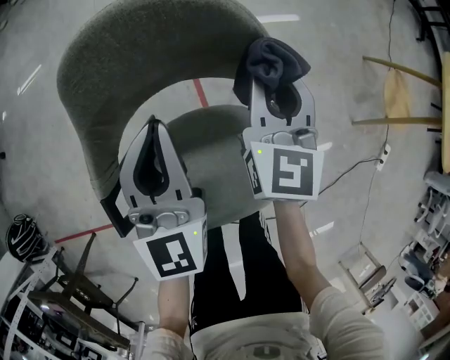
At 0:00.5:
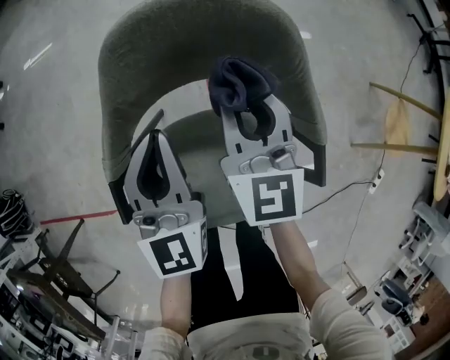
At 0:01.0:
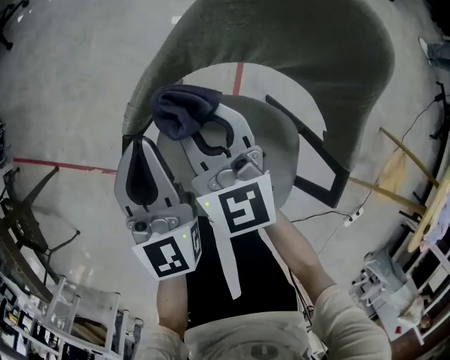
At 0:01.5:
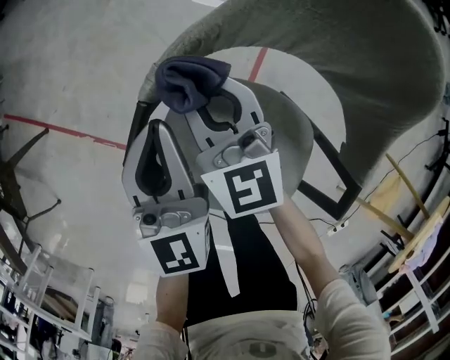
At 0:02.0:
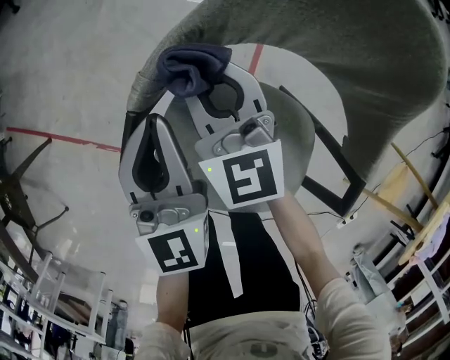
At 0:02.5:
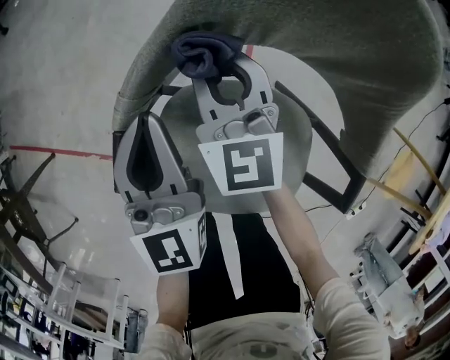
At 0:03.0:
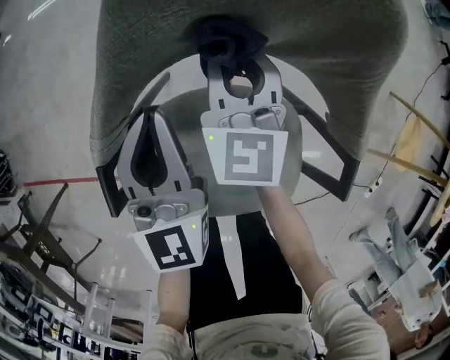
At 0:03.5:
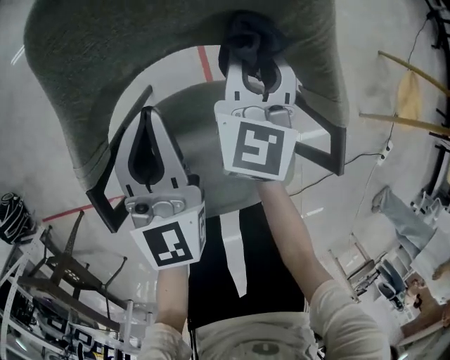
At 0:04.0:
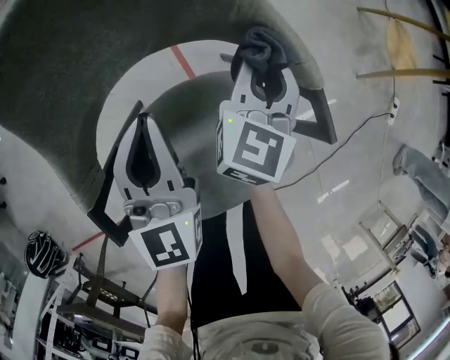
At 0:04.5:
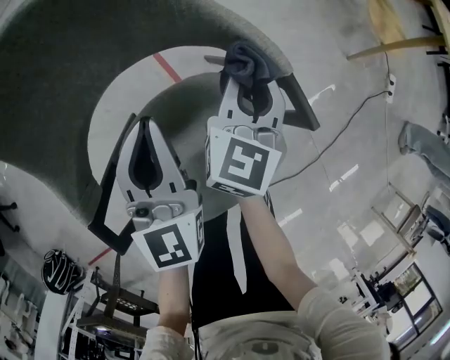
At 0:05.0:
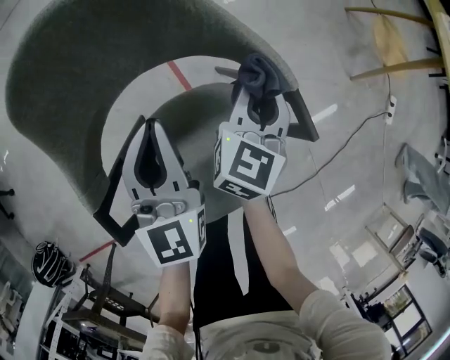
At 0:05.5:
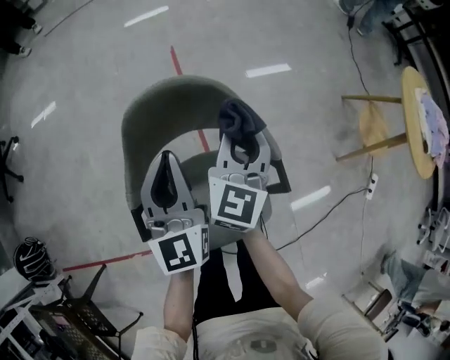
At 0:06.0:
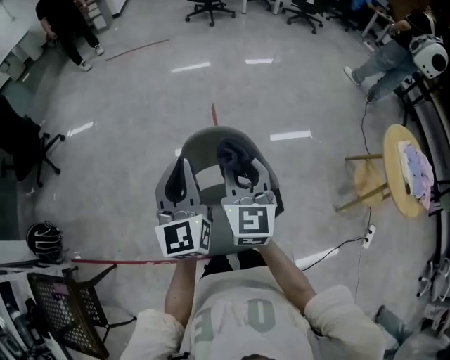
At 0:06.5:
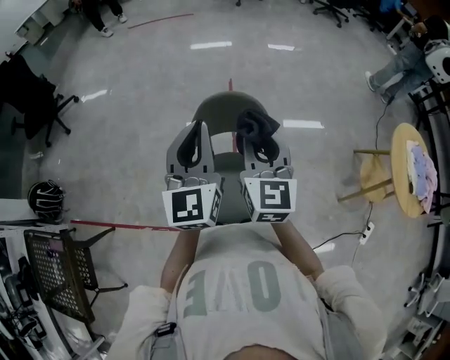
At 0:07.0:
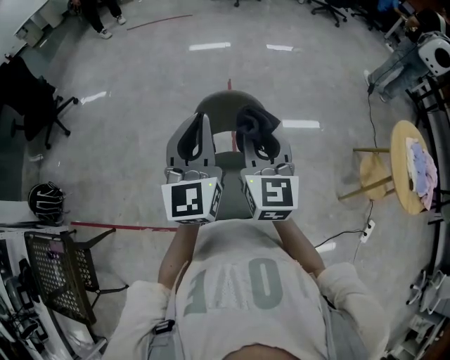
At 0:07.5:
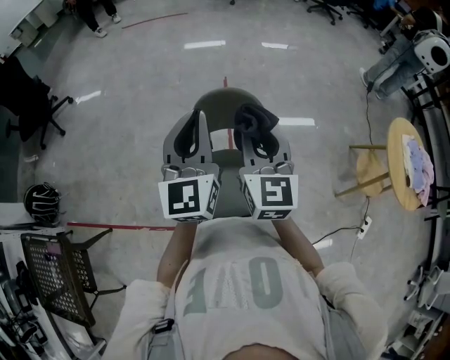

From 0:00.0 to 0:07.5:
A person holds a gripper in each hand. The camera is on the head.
From 0:00.0 to 0:02.0: The right gripper shifts by approximately 35 cm, and swivels roughly 60 degrees. The left gripper moves some 20 cm, and turns by roughly 30 degrees.
From 0:02.0 to 0:04.0: The left gripper moves approximately 20 cm, and rotates some 40 degrees, while the right gripper shifts by some 40 cm, and changes its angle by approximately 80 degrees.
From 0:04.0 to 0:05.5: The two grippers go approximately 20 cm upward.
From 0:05.5 to 0:07.5: The two grippers go approximately 30 cm upward and backward. The right gripper swivels about 30 degrees.

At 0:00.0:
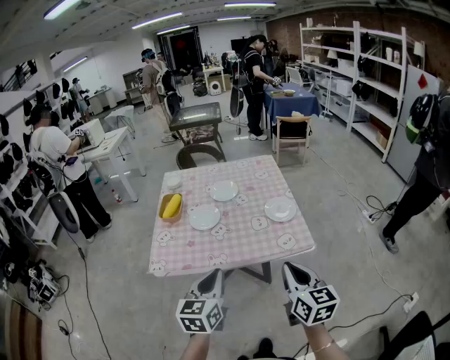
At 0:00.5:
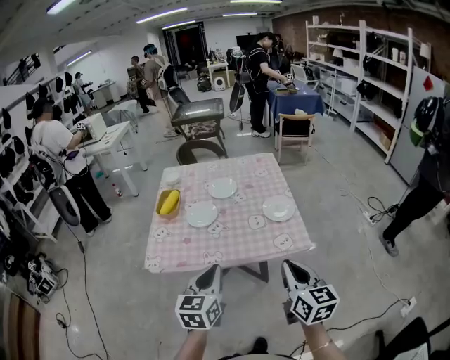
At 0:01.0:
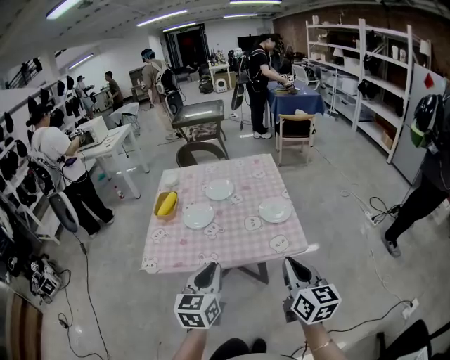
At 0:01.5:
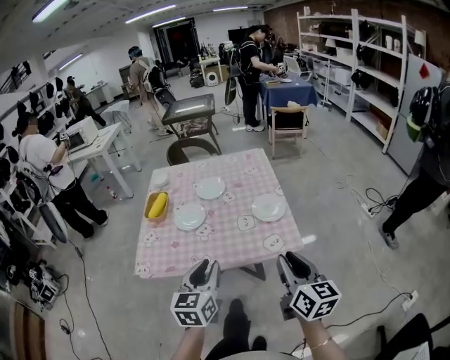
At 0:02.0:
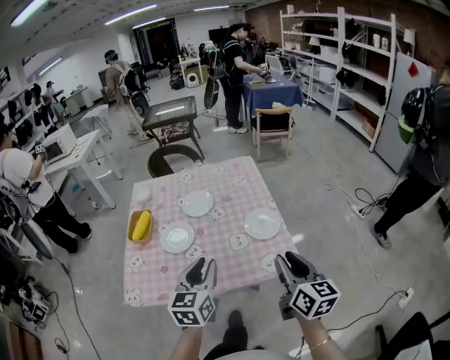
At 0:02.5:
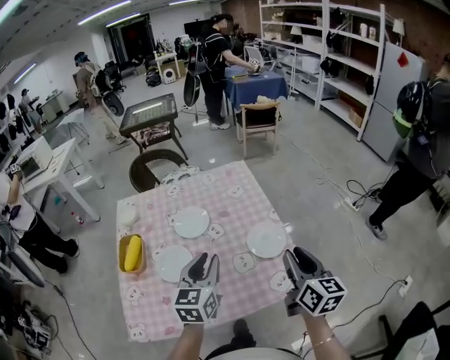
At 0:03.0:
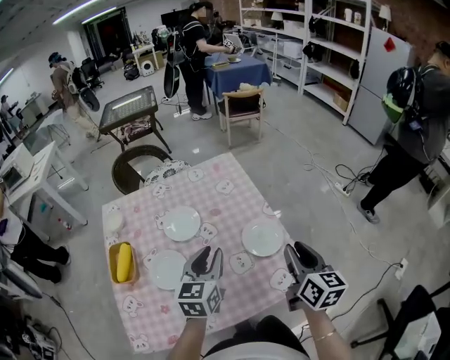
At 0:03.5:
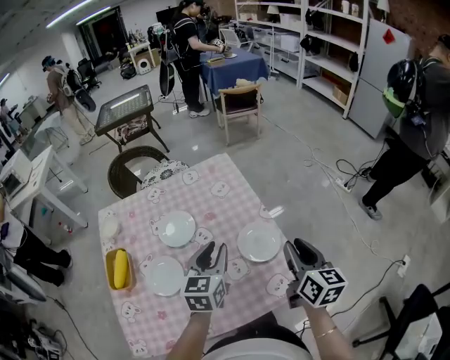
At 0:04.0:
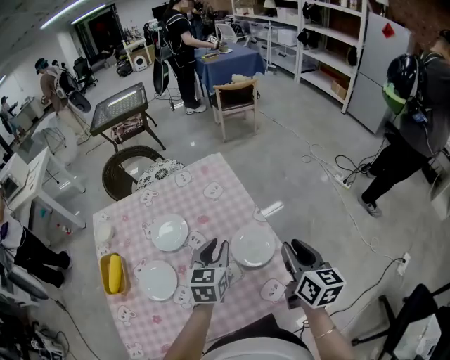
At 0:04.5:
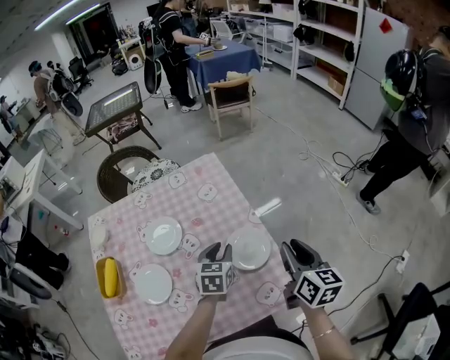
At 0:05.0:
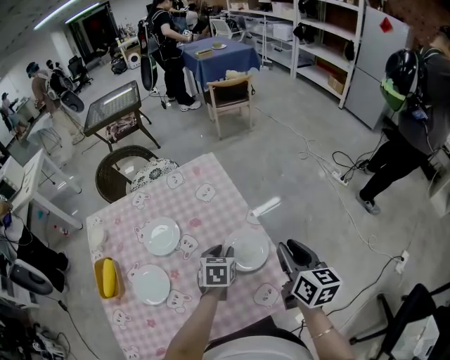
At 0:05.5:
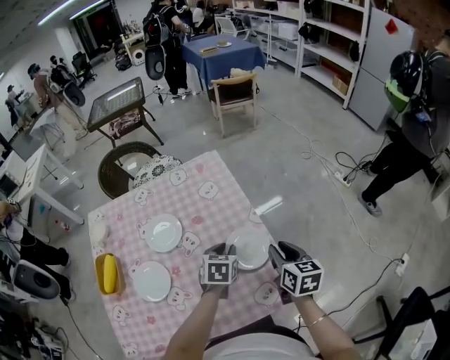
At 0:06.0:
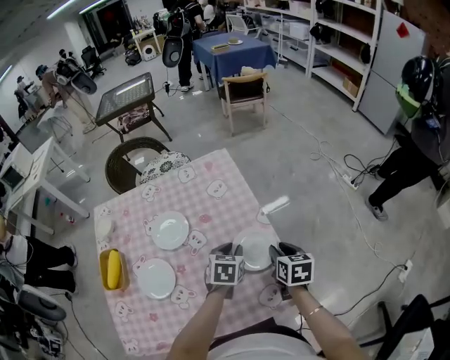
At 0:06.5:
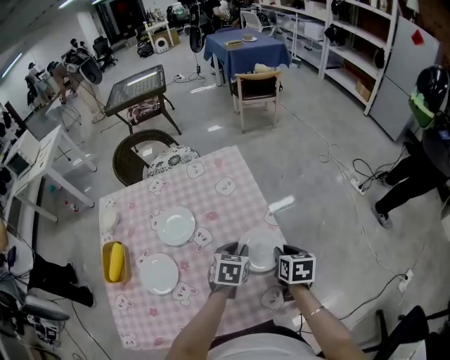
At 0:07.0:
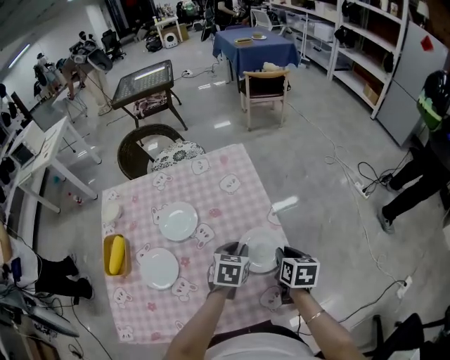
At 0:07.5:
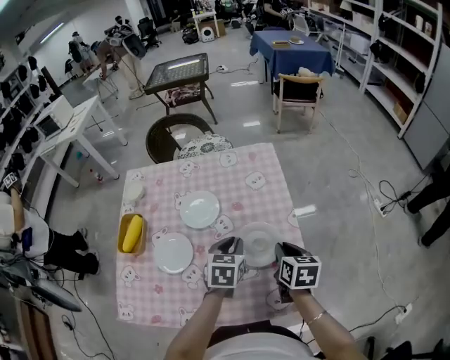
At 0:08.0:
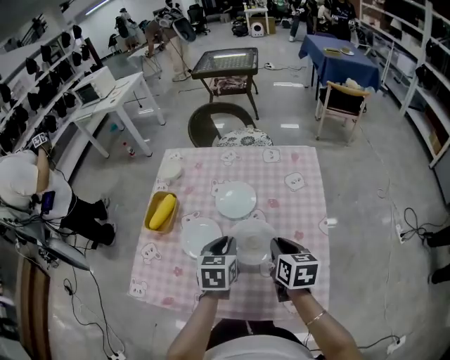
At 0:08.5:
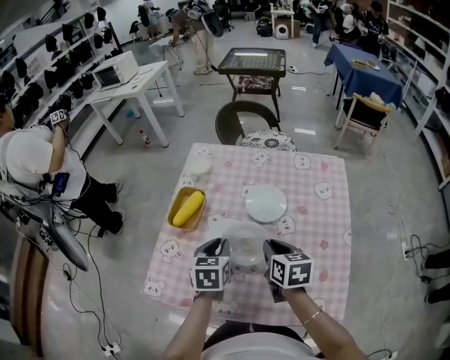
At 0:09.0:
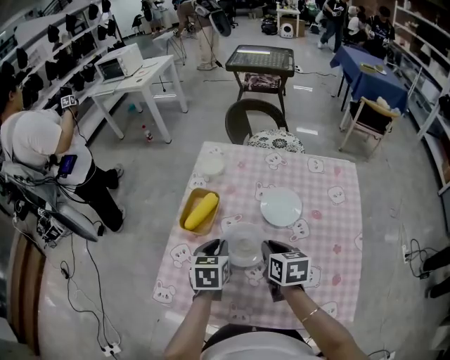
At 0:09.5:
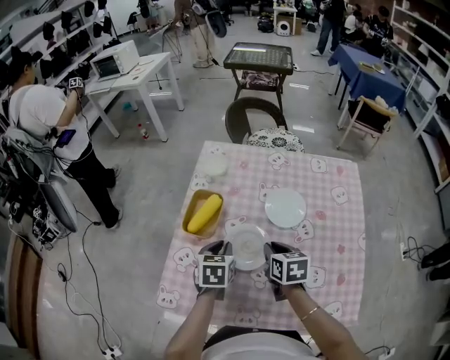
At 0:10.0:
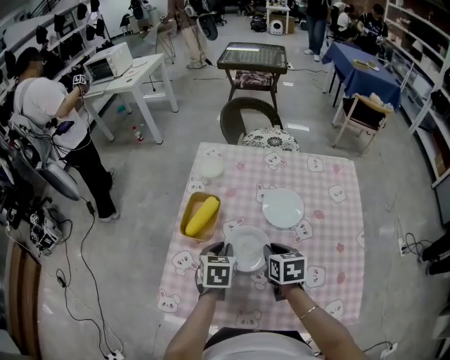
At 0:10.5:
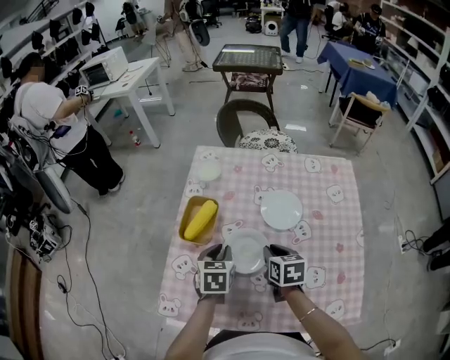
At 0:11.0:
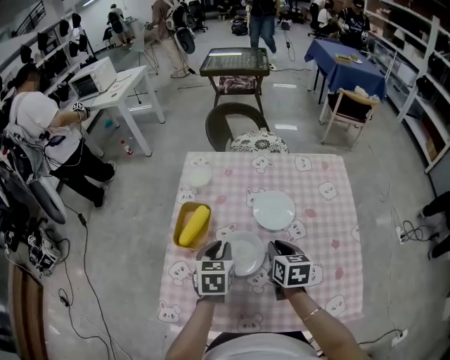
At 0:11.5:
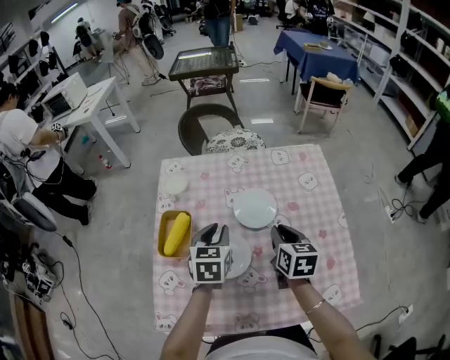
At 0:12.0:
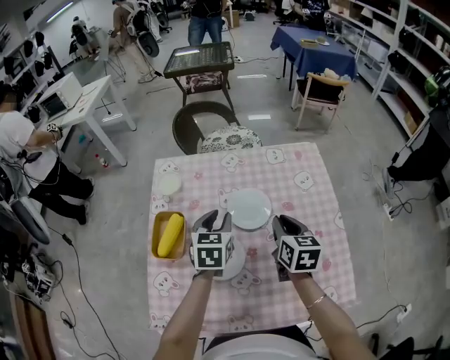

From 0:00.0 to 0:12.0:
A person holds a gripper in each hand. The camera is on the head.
From 0:00.0 to 0:02.0: The right gripper heads forward and to the right, covering some 20 cm, and opens. Meanwhile the left gripper is displaced forward by about 20 cm.
From 0:02.0 to 0:04.0: The grippers both shift forward by approximately 30 cm.
From 0:04.0 to 0:06.0: Both grippers travel together downward, approximately 15 cm. The right gripper swivels some 30 degrees; the left gripper swivels some 20 degrees.
From 0:06.0 to 0:08.0: The left gripper changes place by roughly 20 cm, and swivels some 30 degrees; the right gripper shifts by about 20 cm, and turns by approximately 30 degrees.
From 0:08.0 to 0:10.0: Both grippers travel together to the left and forward, roughly 25 cm.
From 0:10.0 to 0:12.0: The left gripper is displaced to the right, forward and upward by roughly 20 cm, and rotates approximately 20 degrees. Meanwhile the right gripper shifts about 15 cm to the right, upward and forward, and rotates roughly 30 degrees.

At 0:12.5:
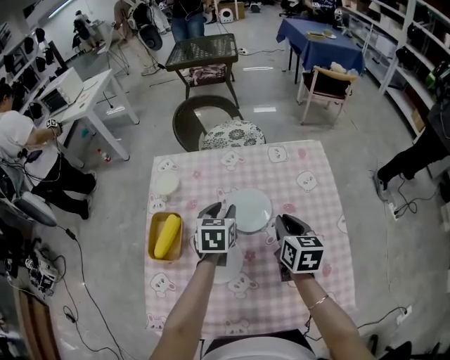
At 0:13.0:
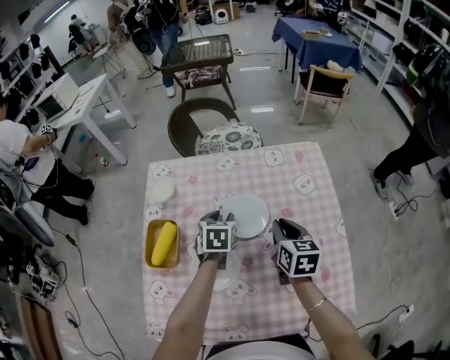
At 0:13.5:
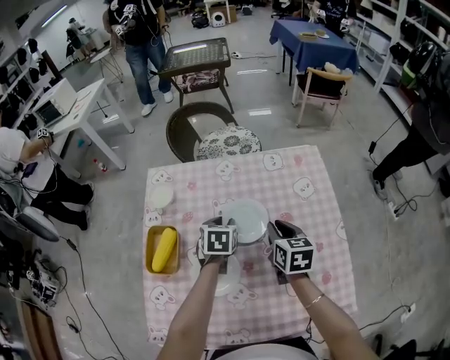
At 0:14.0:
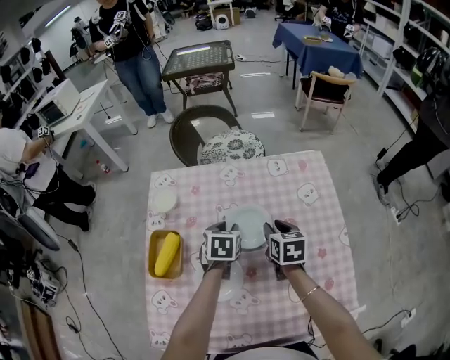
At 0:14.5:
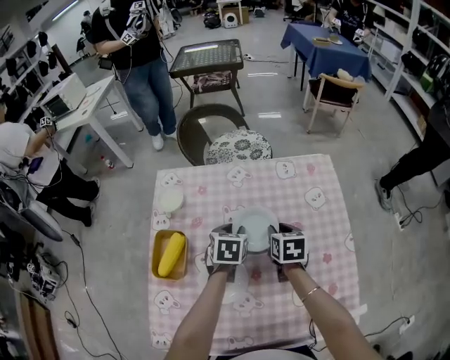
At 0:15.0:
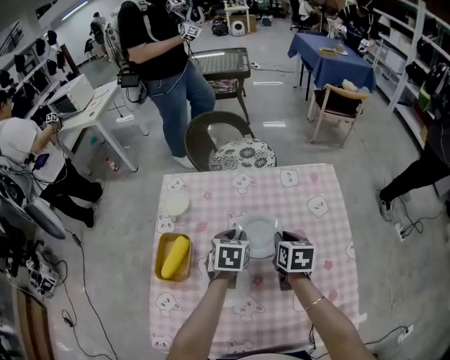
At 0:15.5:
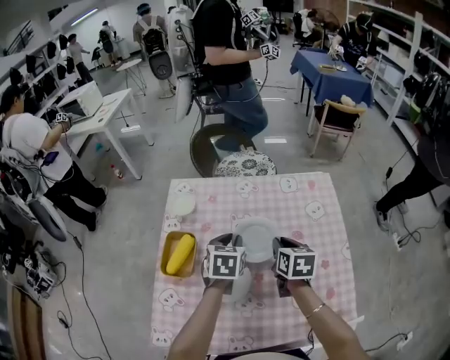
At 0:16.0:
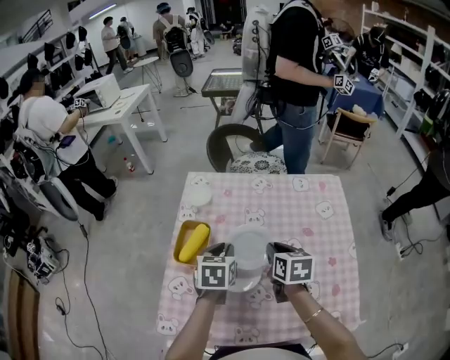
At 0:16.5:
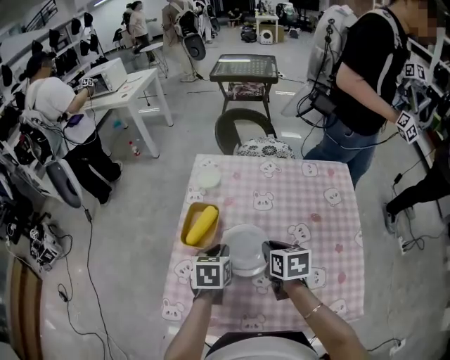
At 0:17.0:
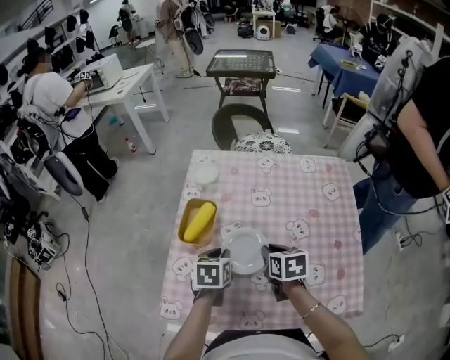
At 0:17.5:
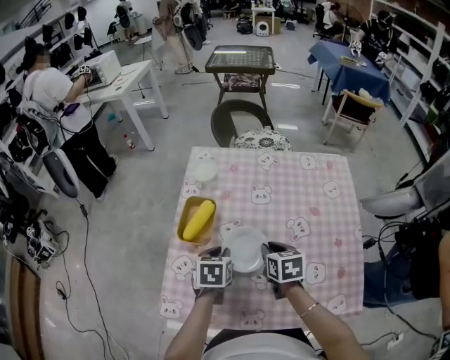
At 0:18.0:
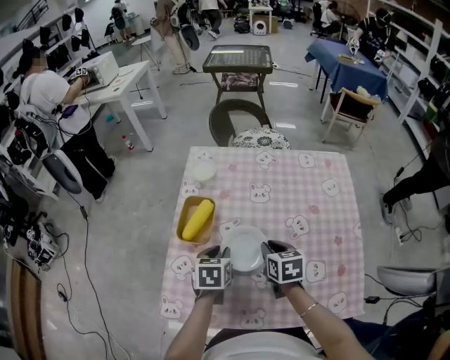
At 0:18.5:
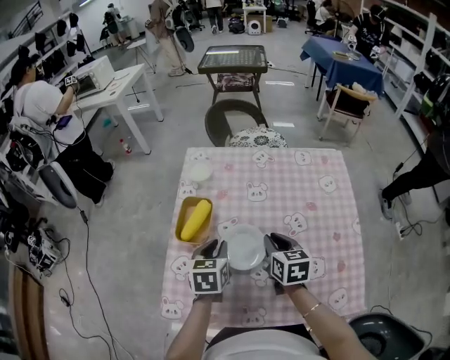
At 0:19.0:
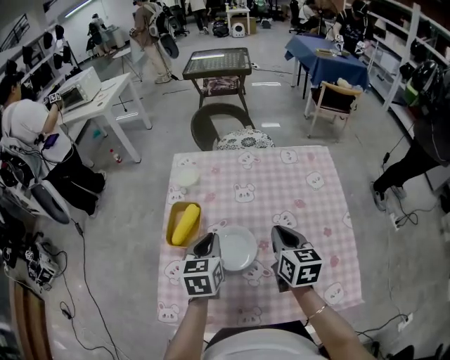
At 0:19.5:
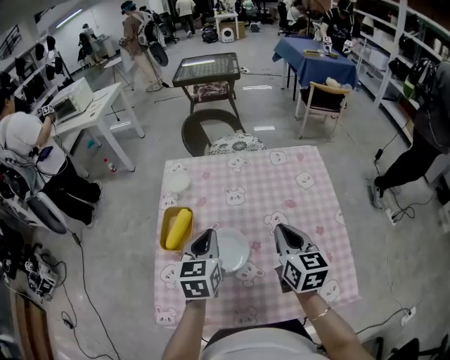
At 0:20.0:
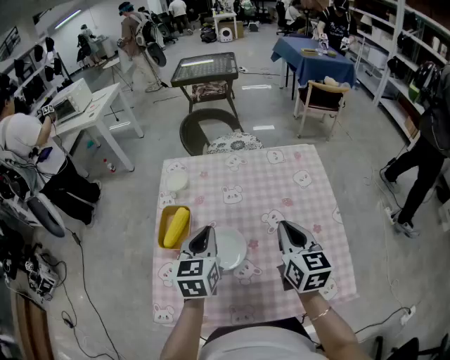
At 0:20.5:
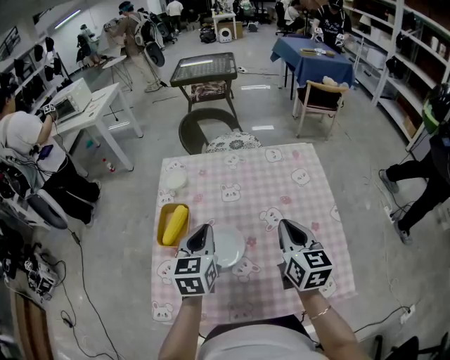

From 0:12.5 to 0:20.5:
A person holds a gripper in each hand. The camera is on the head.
From 0:12.5 to 0:14.5: The left gripper shifts roughly 5 cm downward; the right gripper travels downward and forward by approximately 10 cm.
From 0:14.5 to 0:16.5: The left gripper goes approximately 25 cm backward and to the left. Meanwhile the right gripper moves backward, to the left and upward, about 20 cm.
From 0:16.5 to 0:18.5: The grippers stay close to where they were, moving slightly.
From 0:18.5 to 0:20.5: The two grippers go approximately 15 cm upward and to the right. The right gripper changes its angle by about 20 degrees.
